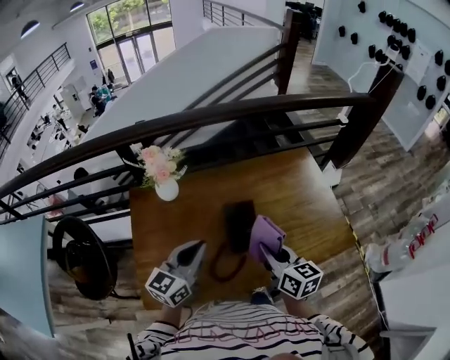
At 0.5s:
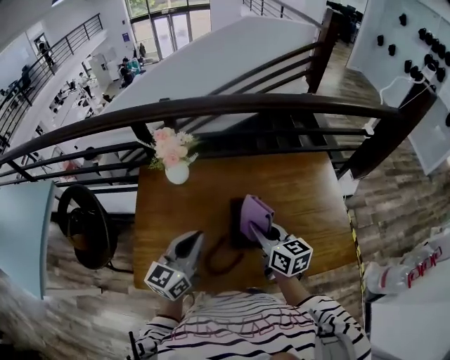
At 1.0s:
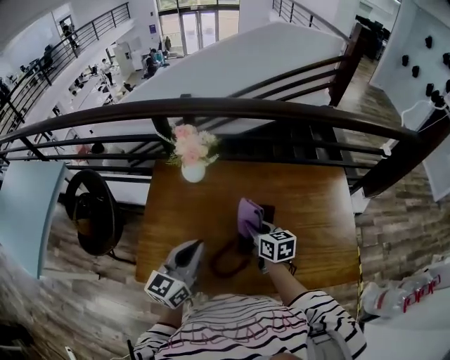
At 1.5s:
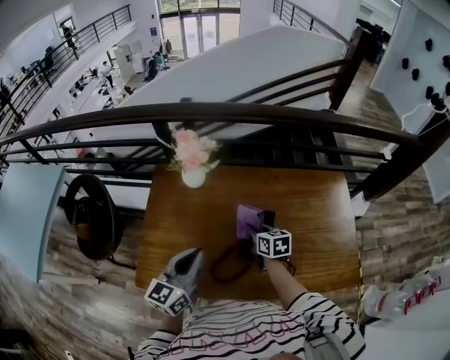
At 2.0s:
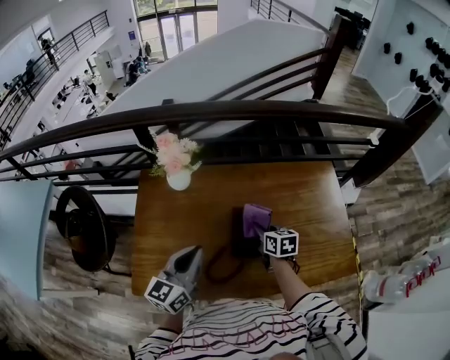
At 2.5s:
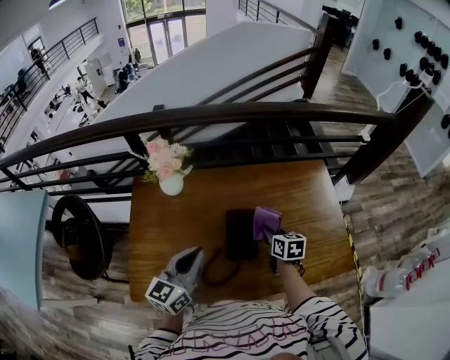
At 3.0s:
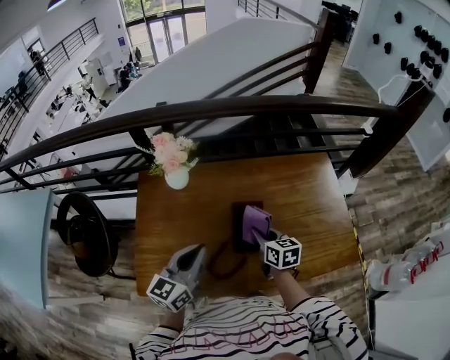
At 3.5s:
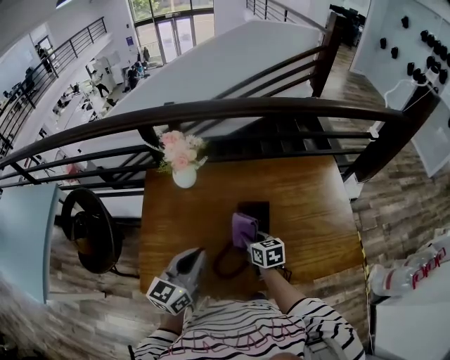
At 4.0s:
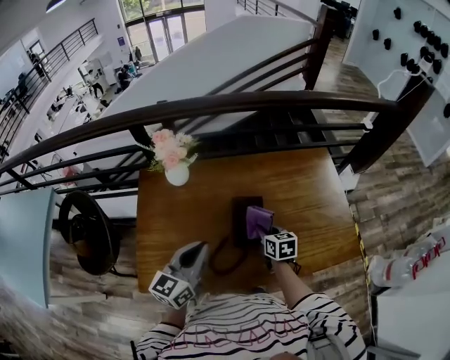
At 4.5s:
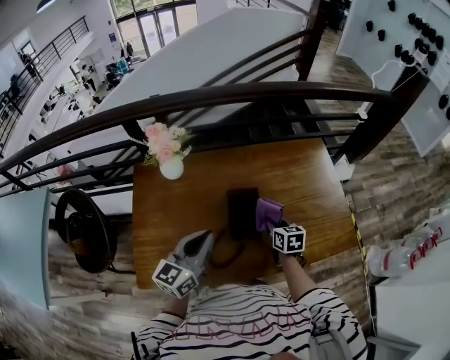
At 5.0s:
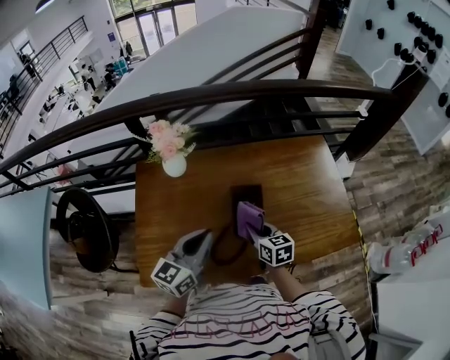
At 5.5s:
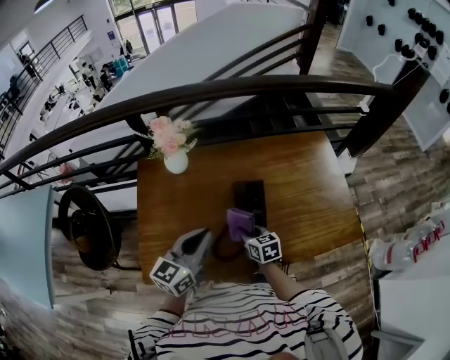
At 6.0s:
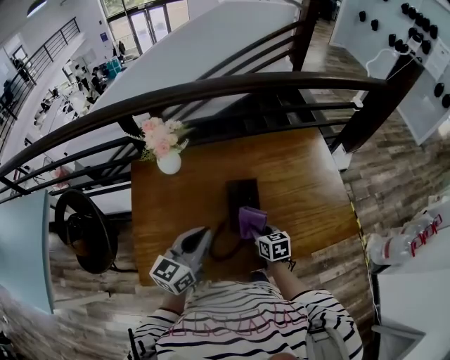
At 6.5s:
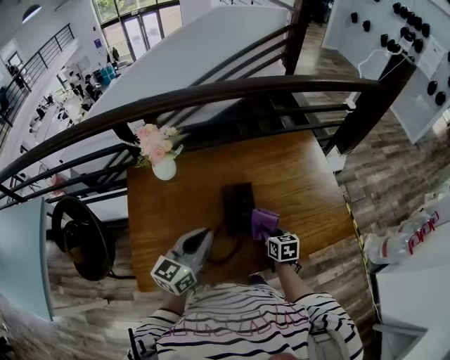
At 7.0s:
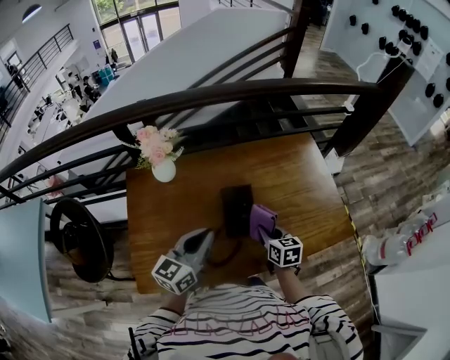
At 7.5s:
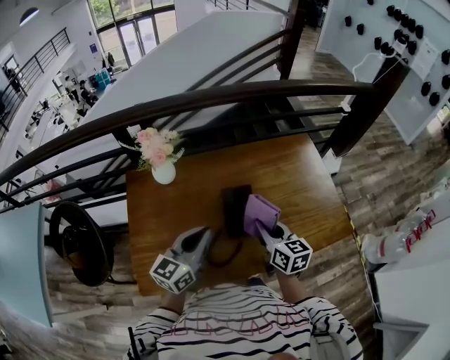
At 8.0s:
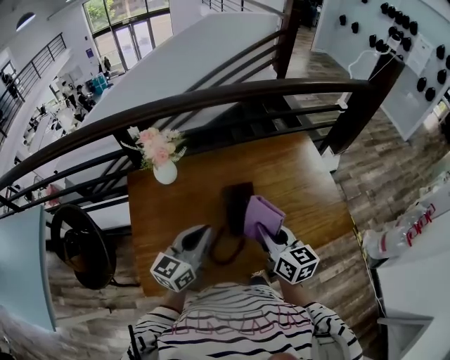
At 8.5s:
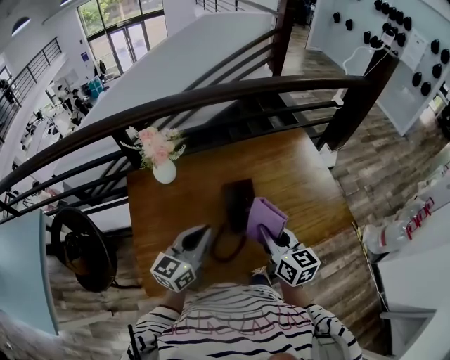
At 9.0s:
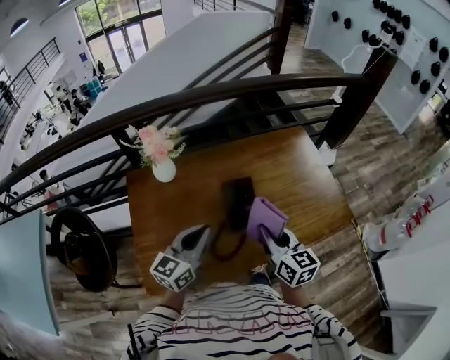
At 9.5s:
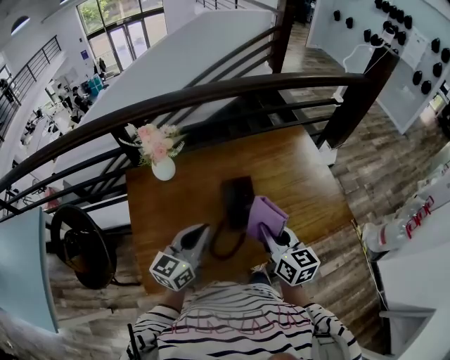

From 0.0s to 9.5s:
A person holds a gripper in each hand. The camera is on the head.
From 0.0s to 2.0s: The right gripper goes about 20 cm forward and downward, and swivels some 20 degrees.
From 2.0s to 4.0s: The right gripper goes left and right, approximately 15 cm each way, reversing 2 times.
From 4.0s to 5.5s: The right gripper travels to the left and backward by approximately 10 cm.
From 5.5s to 7.5s: The right gripper moves upward and to the right, roughly 15 cm, and rotates roughly 20 degrees.
From 7.5s to 9.5s: The right gripper moves backward, roughly 5 cm.

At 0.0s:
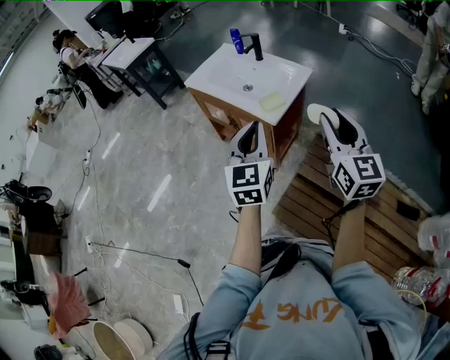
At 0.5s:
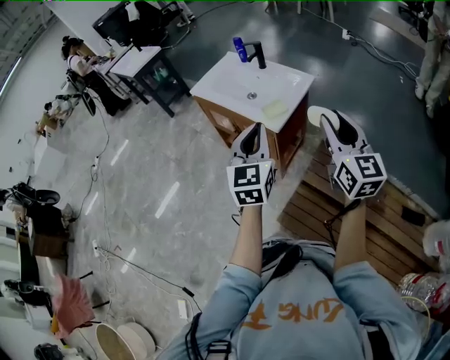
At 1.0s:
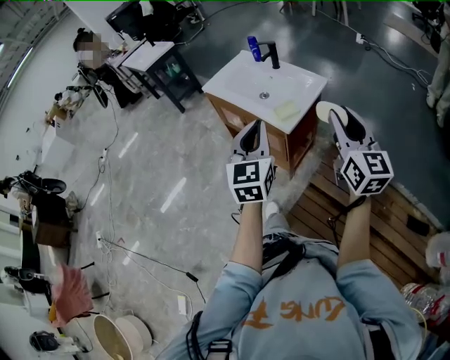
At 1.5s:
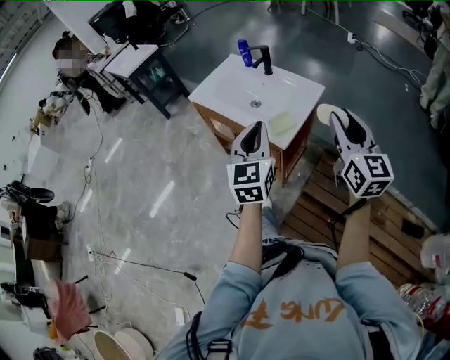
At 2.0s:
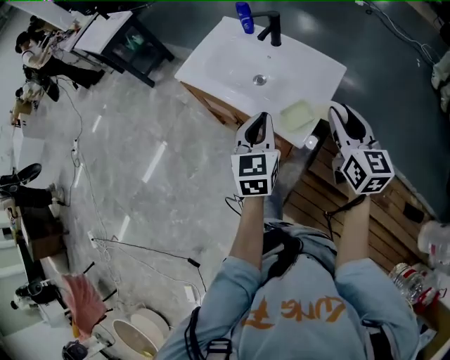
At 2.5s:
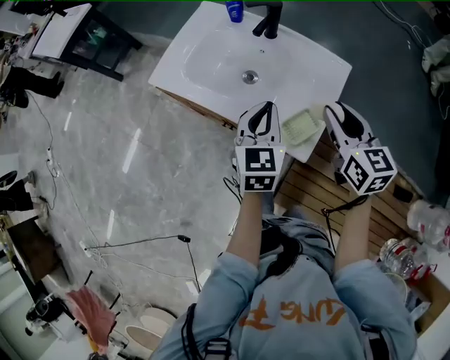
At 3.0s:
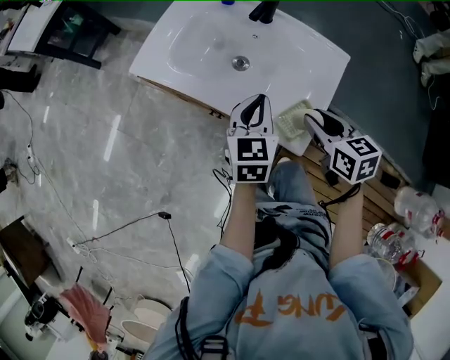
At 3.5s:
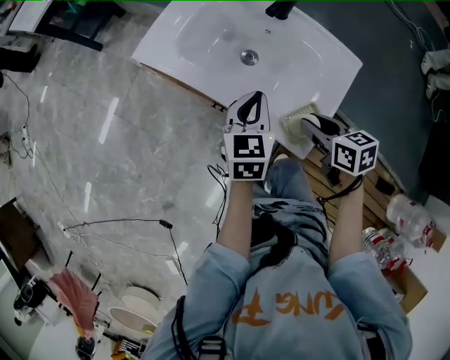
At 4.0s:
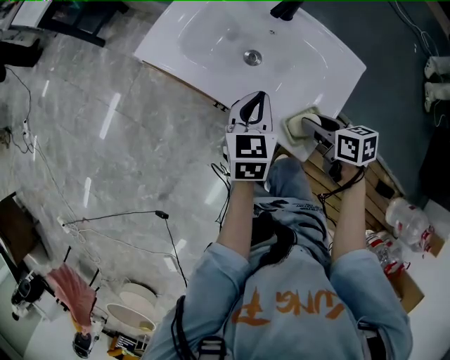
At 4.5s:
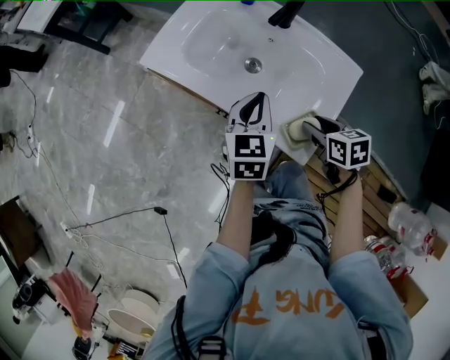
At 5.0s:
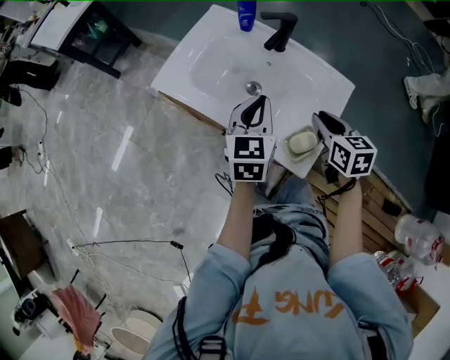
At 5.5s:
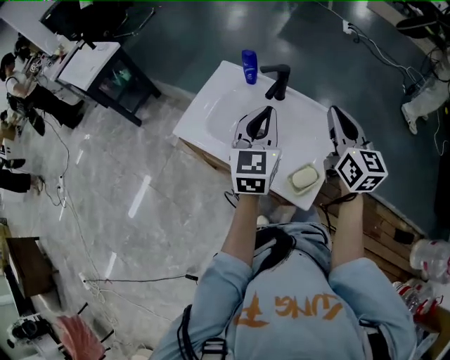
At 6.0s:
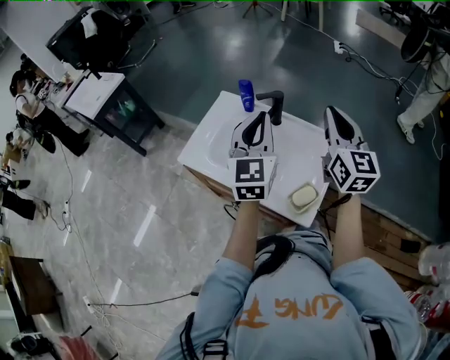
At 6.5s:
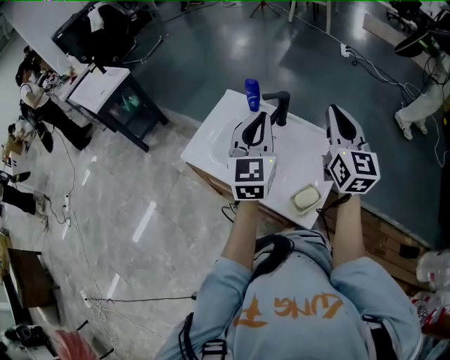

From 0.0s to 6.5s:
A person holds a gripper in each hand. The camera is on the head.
From 0.0s to 2.0s: Both grippers move forward and downward, some 30 cm.
From 2.0s to 4.5s: The right gripper shifts roughly 25 cm downward and forward, and tilts its fingers approximately 40 degrees downward. Meanwhile the left gripper shifts about 20 cm forward and downward.
From 4.5s to 6.5s: The grippers both shift upward by some 30 cm. The left gripper rotates some 30 degrees. The right gripper tips its fingers upward by approximately 60 degrees, and closes its fingers.

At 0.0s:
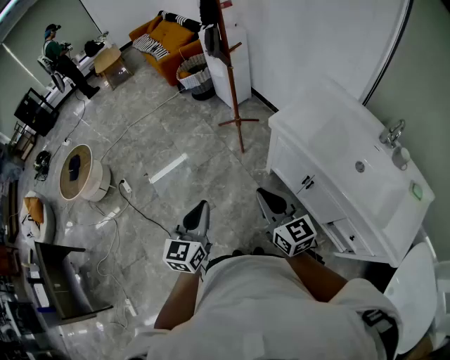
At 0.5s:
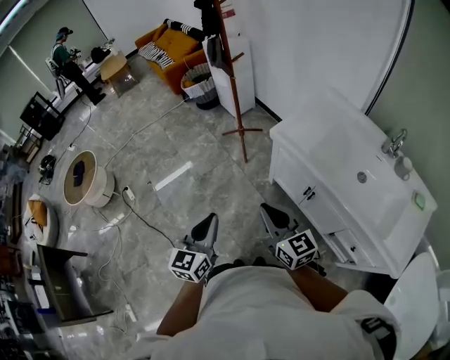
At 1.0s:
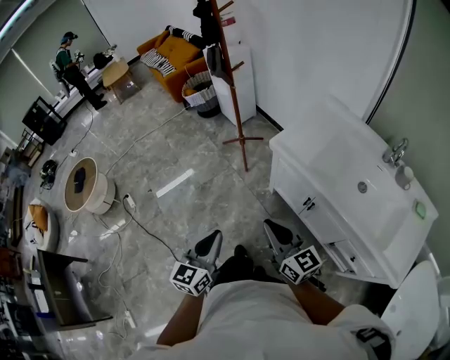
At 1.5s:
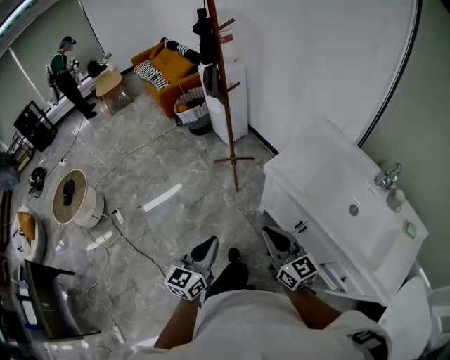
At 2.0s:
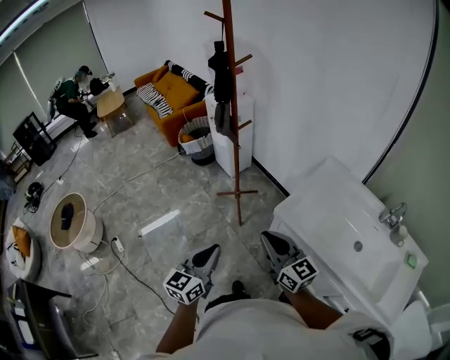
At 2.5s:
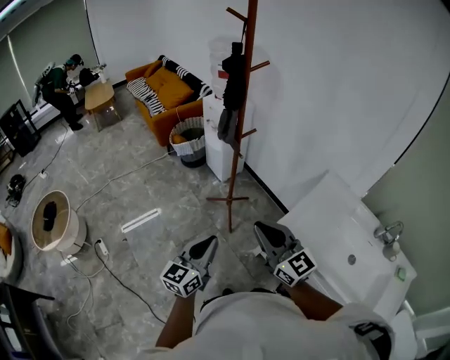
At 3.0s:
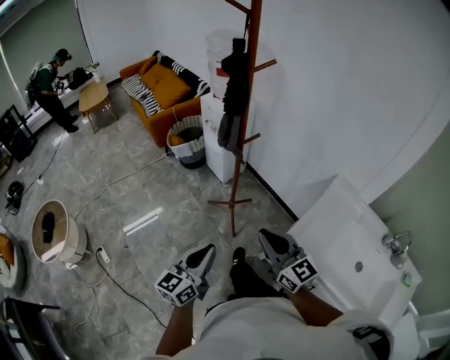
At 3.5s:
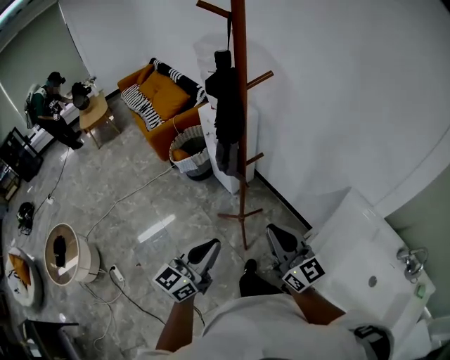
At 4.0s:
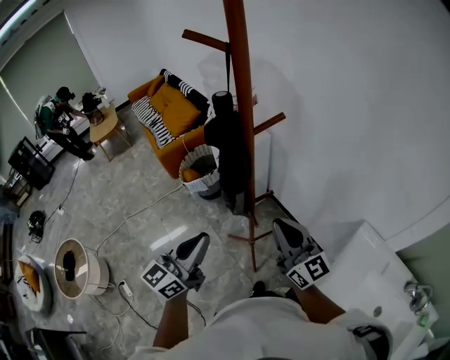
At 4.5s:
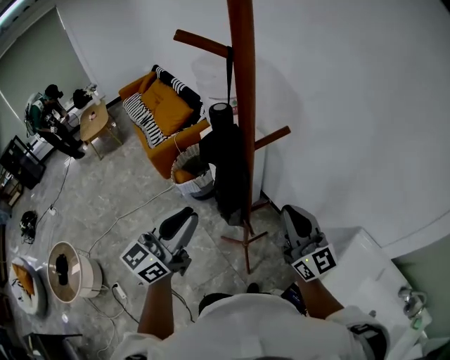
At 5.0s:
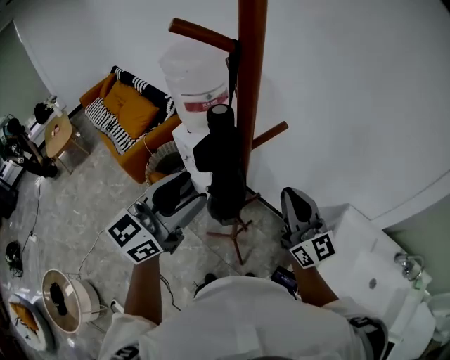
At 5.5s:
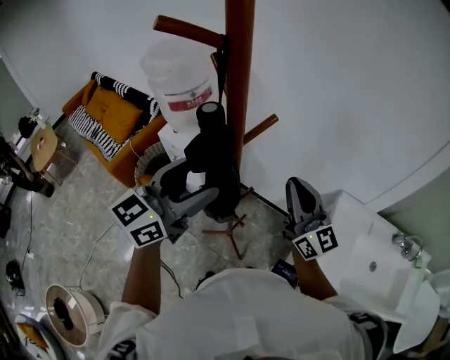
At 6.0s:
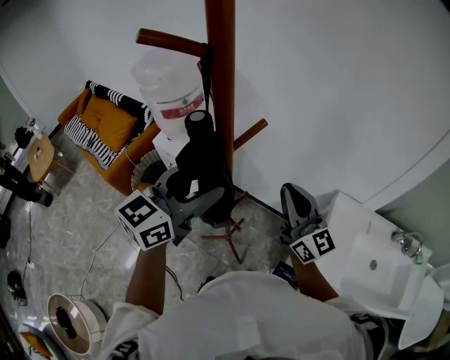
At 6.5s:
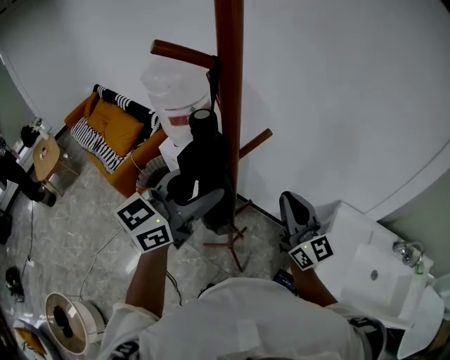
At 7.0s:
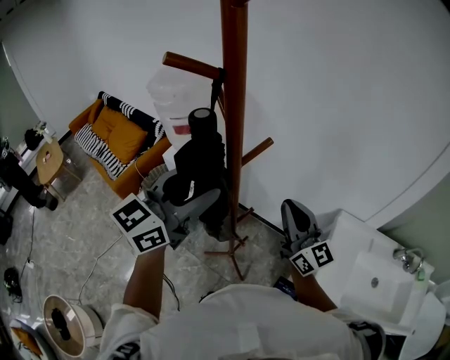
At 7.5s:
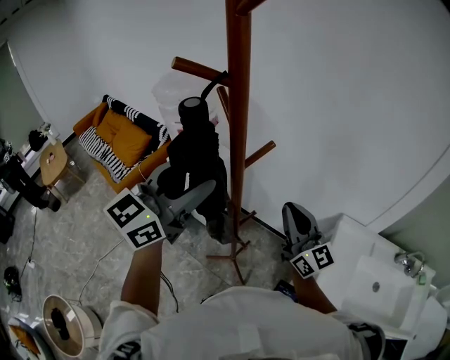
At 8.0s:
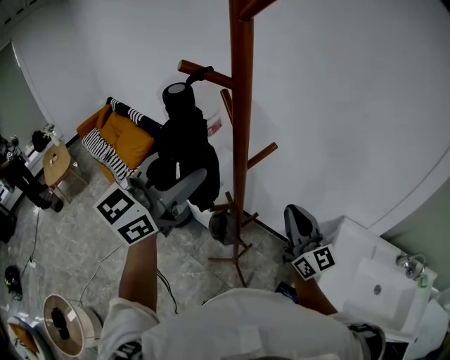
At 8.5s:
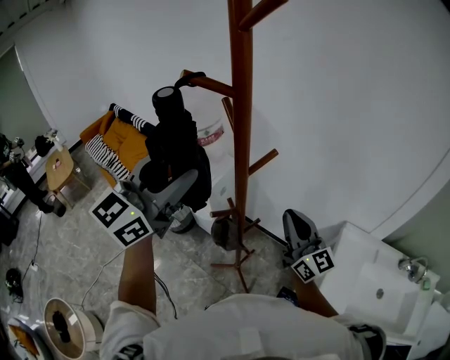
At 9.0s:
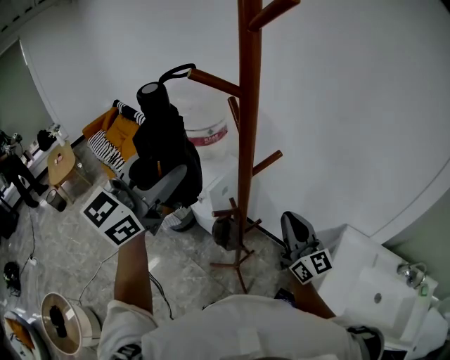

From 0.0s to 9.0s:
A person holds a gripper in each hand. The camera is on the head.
From 0.0s to 2.0s: Both grippers travel together forward, approximately 20 cm.
From 2.0s to 4.5s: Both grippers are carried forward, some 50 cm.
From 4.5s to 7.0s: The left gripper shifts by approximately 15 cm, changes its angle by some 30 degrees, and opens.
From 7.0s to 9.0s: The left gripper heads upward and to the left, covering about 10 cm.

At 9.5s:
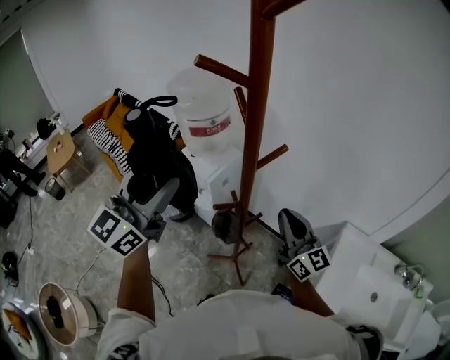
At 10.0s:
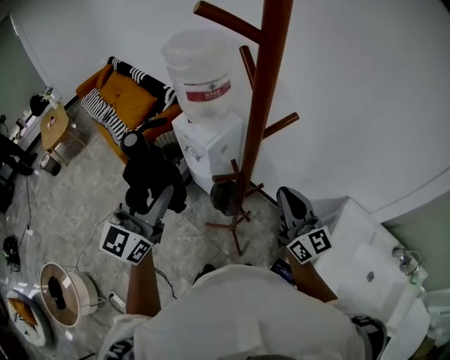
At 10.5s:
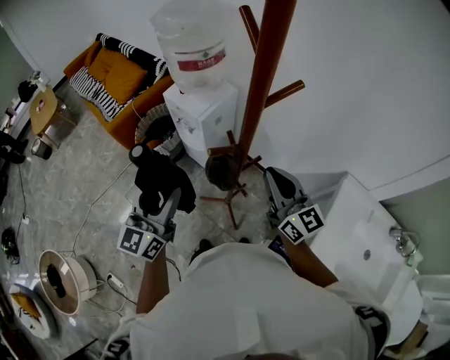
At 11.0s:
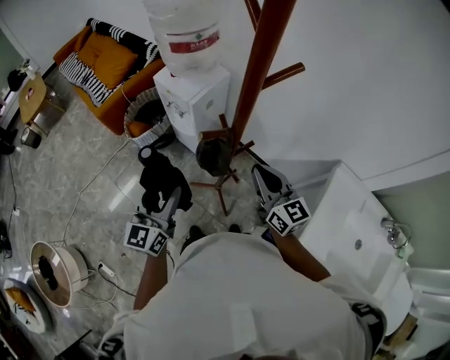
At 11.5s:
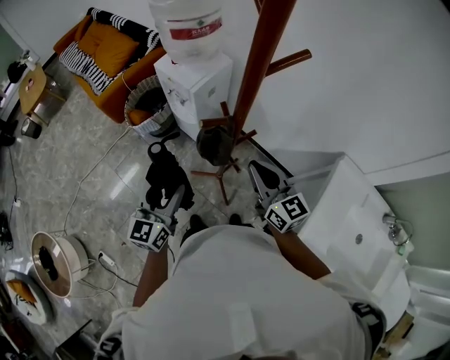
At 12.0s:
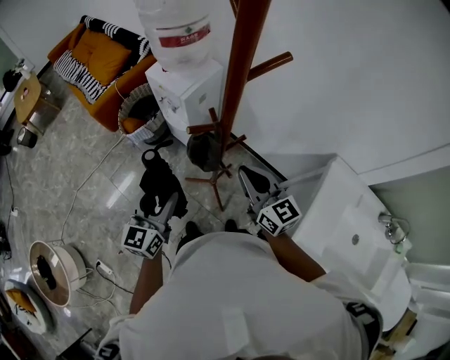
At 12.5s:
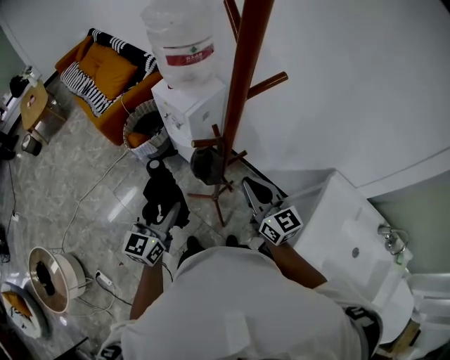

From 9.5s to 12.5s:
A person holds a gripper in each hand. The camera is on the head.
From 9.5s to 11.0s: The right gripper shifts about 15 cm downward. The left gripper shifts about 30 cm downward, and changes its angle by some 30 degrees.
From 11.0s to 12.5s: The grippers stay close to where they were, moving slightly.
